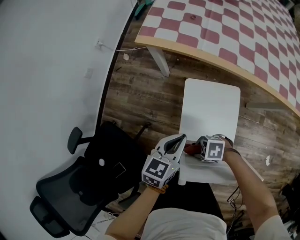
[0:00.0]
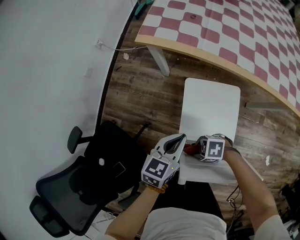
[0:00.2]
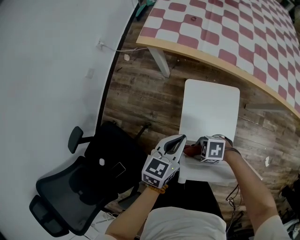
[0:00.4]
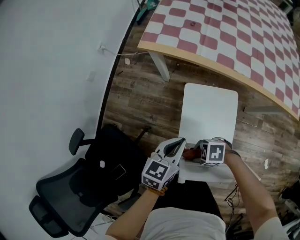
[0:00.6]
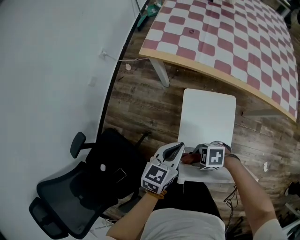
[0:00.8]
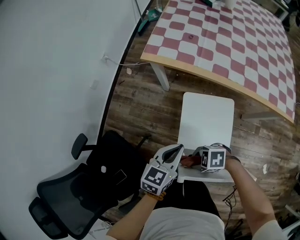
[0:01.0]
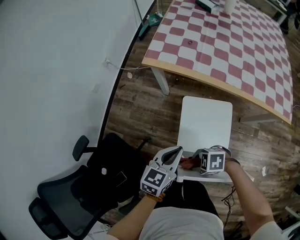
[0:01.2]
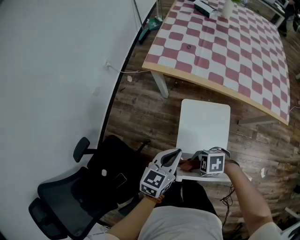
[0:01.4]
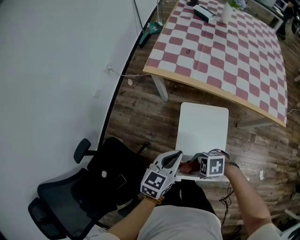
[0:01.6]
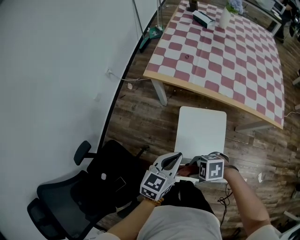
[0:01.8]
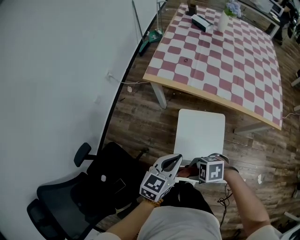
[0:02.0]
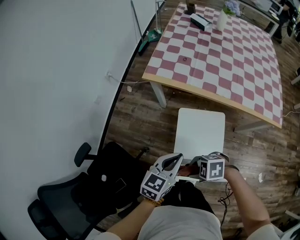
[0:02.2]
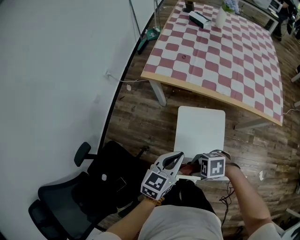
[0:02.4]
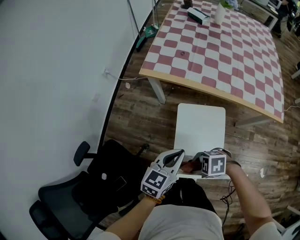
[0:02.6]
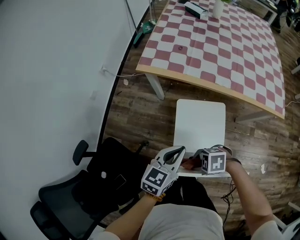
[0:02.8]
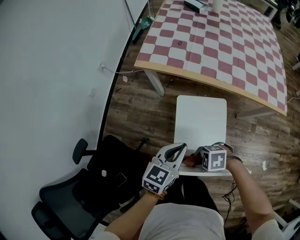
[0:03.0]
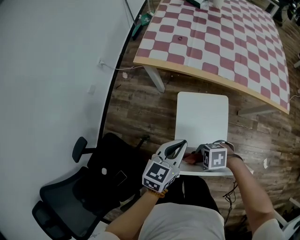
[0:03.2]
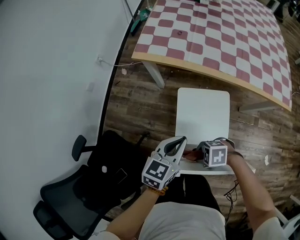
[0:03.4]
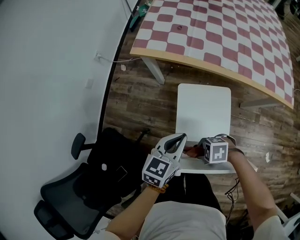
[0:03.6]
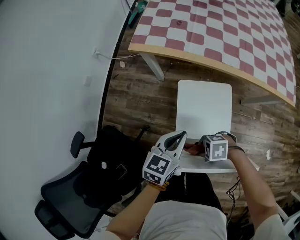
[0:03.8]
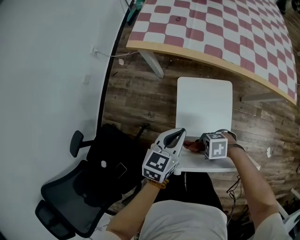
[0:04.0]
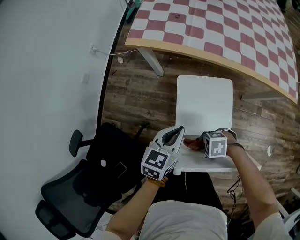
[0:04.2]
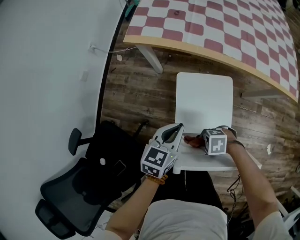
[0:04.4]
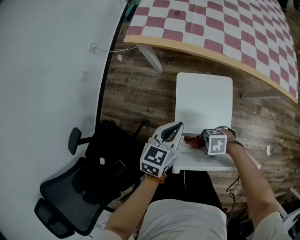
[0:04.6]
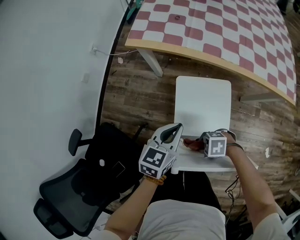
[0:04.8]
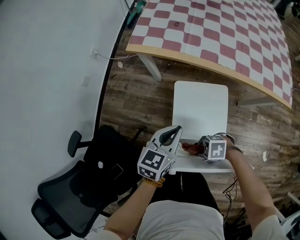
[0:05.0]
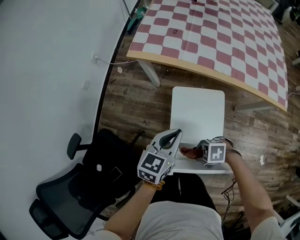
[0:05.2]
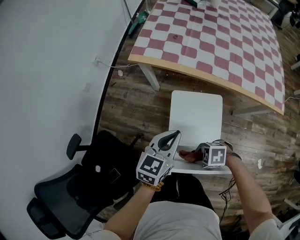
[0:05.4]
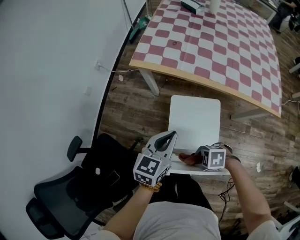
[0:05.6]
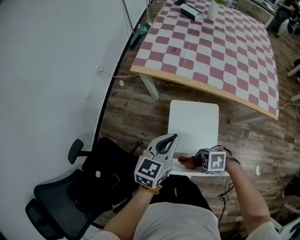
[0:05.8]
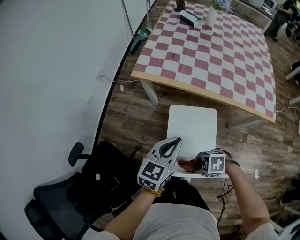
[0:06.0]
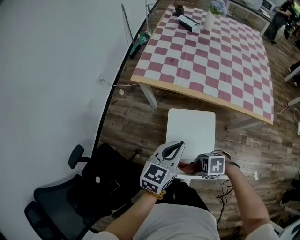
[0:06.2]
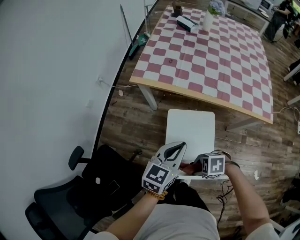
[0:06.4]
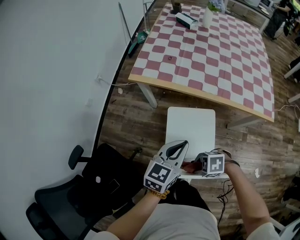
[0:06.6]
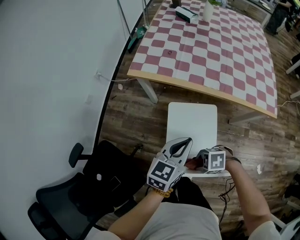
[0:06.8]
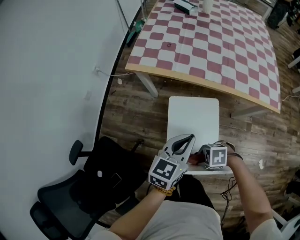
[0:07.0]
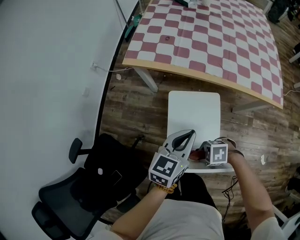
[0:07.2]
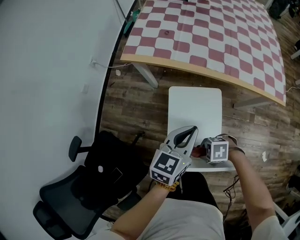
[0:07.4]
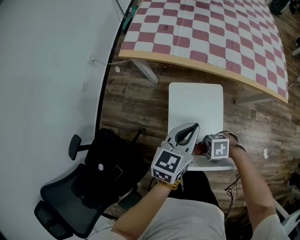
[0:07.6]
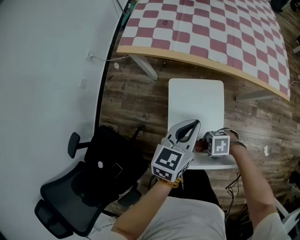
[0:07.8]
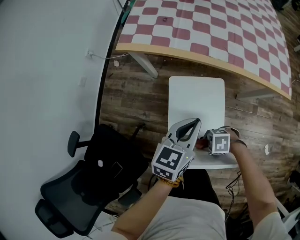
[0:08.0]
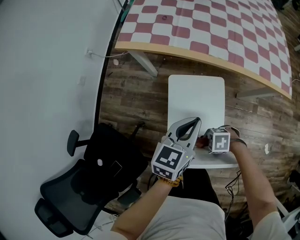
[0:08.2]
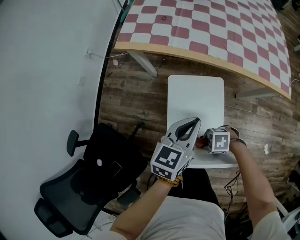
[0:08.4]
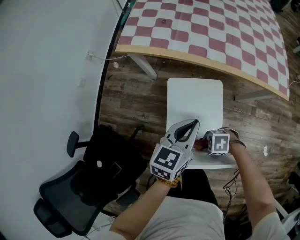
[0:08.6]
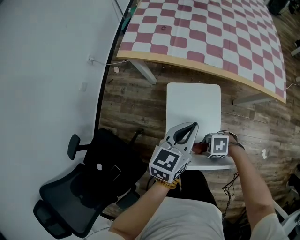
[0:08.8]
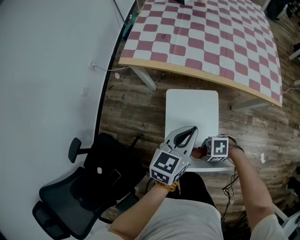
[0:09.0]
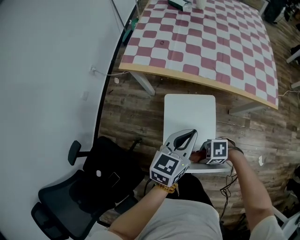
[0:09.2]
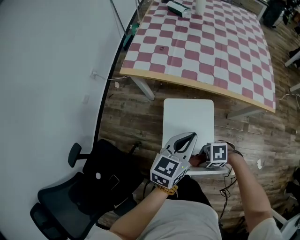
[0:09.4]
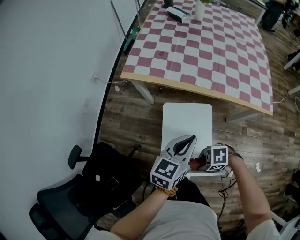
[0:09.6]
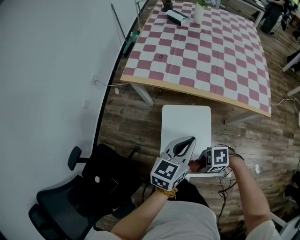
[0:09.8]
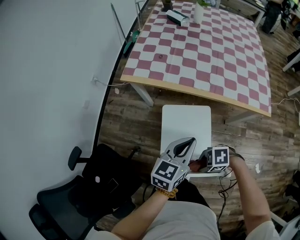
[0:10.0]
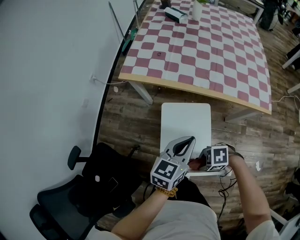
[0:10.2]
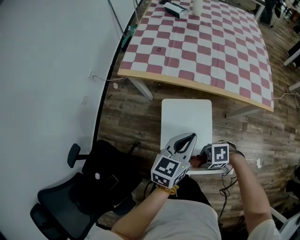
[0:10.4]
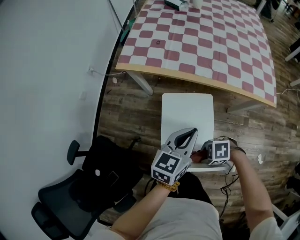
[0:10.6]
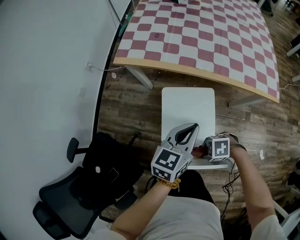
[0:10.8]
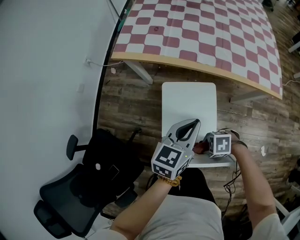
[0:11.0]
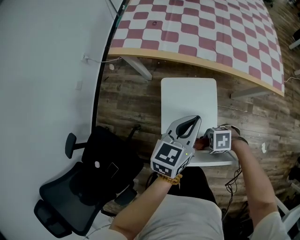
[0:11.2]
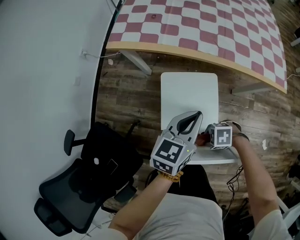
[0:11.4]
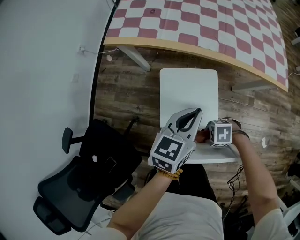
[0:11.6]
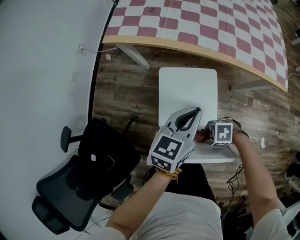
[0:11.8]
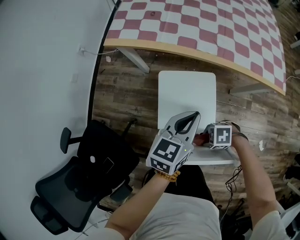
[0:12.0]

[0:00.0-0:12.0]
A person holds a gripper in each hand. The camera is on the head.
0.0 to 1.6 s: The left gripper goes some 10 cm upward; the right gripper travels upward by approximately 15 cm.
1.6 to 3.0 s: The grippers move only a little.
3.0 to 4.4 s: The two grippers go some 10 cm downward.
4.4 to 6.0 s: The grippers both shift upward by about 15 cm.
6.0 to 7.6 s: The right gripper shifts approximately 10 cm downward. Meanwhile the left gripper shifts by approximately 10 cm.
7.6 to 9.0 s: There are only small adjustments of the grippers.
9.0 to 10.4 s: The right gripper is displaced upward by some 5 cm.
10.4 to 12.0 s: The grippers both shift downward by approximately 10 cm.

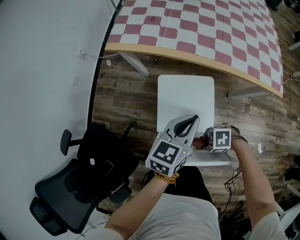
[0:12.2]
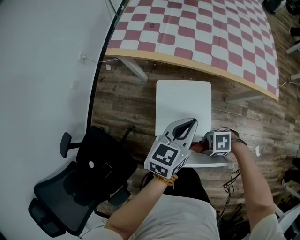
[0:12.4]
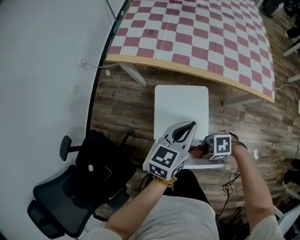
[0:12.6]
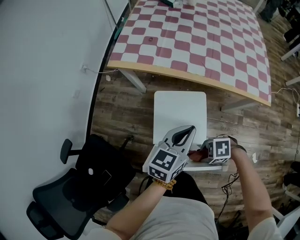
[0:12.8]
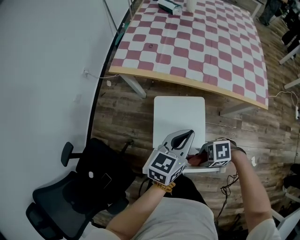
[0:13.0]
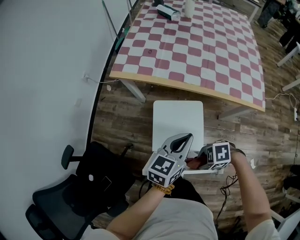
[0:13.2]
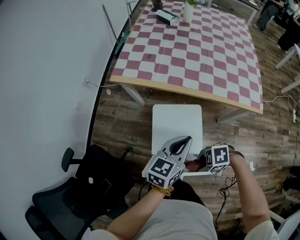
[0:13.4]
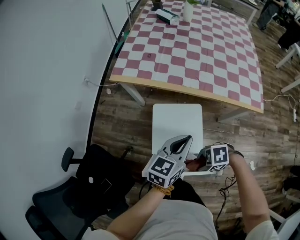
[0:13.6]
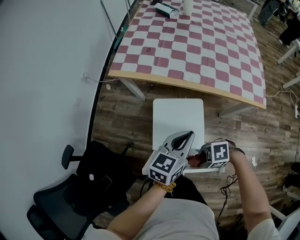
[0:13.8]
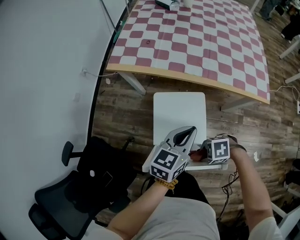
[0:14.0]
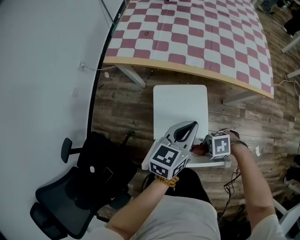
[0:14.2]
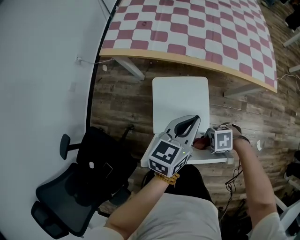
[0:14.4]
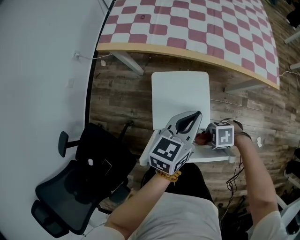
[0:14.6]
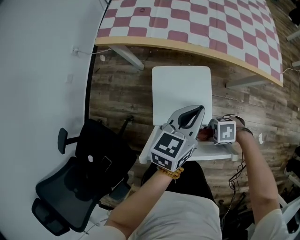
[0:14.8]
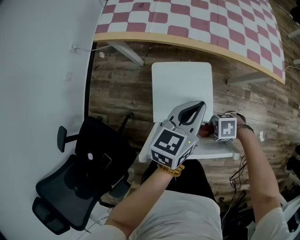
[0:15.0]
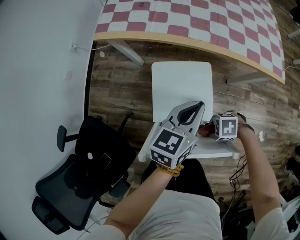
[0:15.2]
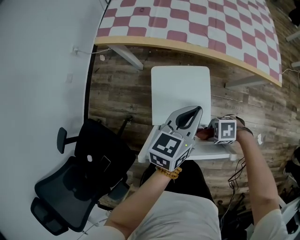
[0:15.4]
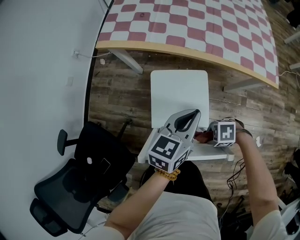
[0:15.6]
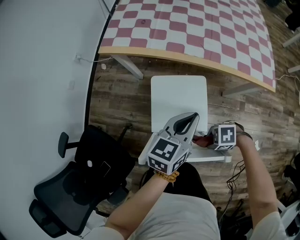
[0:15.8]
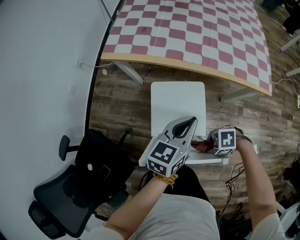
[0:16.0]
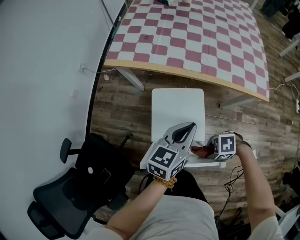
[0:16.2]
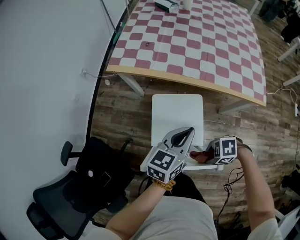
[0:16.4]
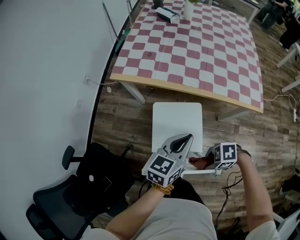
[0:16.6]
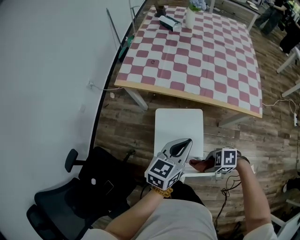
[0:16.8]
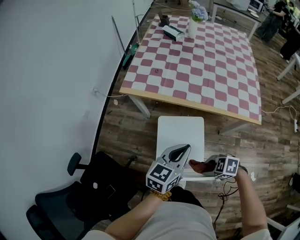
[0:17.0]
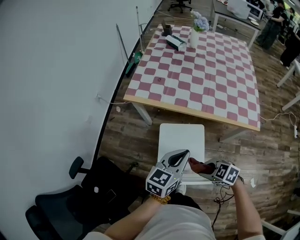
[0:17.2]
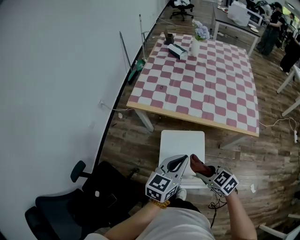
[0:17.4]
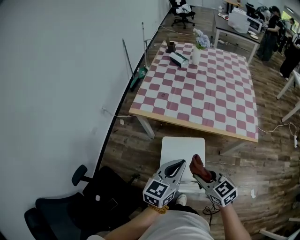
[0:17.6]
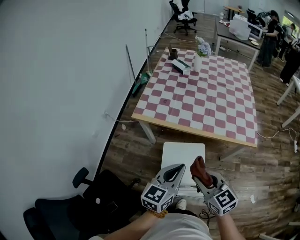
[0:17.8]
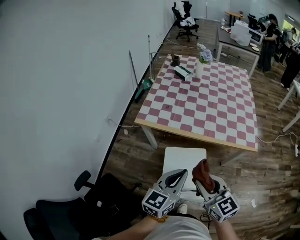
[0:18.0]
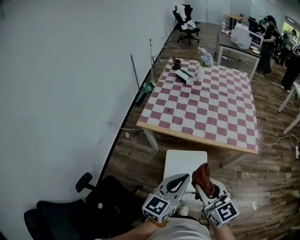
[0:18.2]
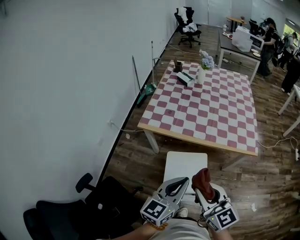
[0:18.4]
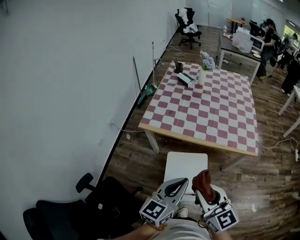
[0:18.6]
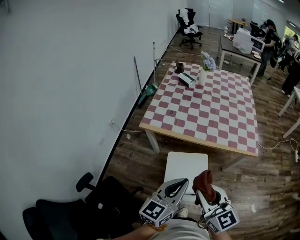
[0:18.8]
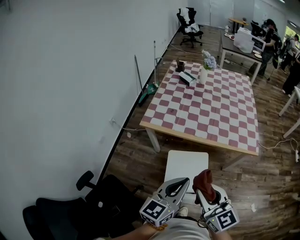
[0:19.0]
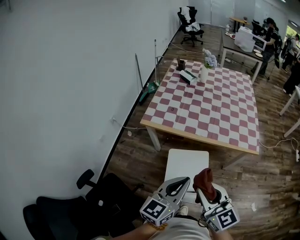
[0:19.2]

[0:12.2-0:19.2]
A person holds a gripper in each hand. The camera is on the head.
12.2 to 13.6 s: The right gripper is displaced upward by roughly 10 cm; the left gripper is displaced upward by roughly 5 cm.
13.6 to 15.0 s: The left gripper goes some 5 cm downward; the right gripper heads downward, covering approximately 15 cm.
15.0 to 16.4 s: The left gripper travels upward by approximately 5 cm; the right gripper moves upward, approximately 15 cm.
16.4 to 17.8 s: The right gripper heads upward, covering approximately 25 cm, and swivels roughly 80 degrees, while the left gripper goes some 15 cm upward.
17.8 to 19.2 s: The left gripper moves upward and backward, approximately 10 cm. Meanwhile the right gripper goes some 10 cm upward.

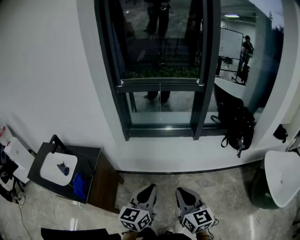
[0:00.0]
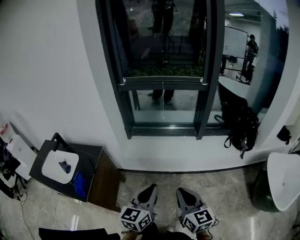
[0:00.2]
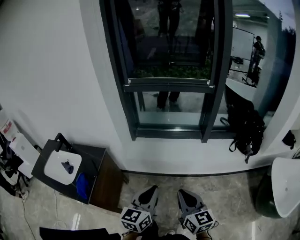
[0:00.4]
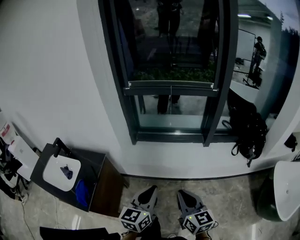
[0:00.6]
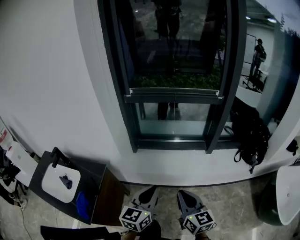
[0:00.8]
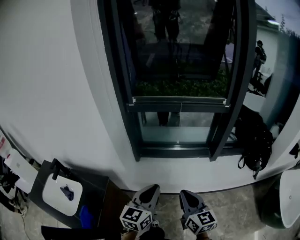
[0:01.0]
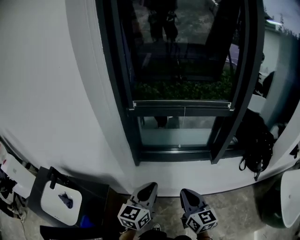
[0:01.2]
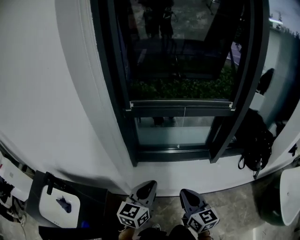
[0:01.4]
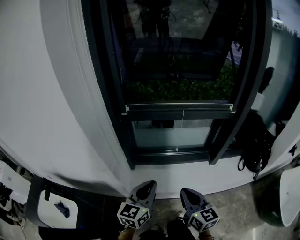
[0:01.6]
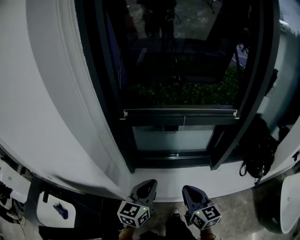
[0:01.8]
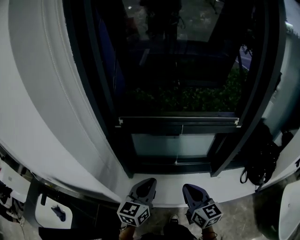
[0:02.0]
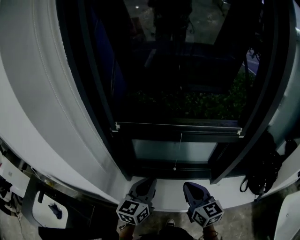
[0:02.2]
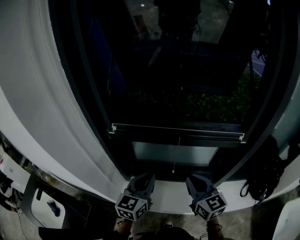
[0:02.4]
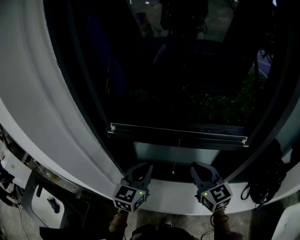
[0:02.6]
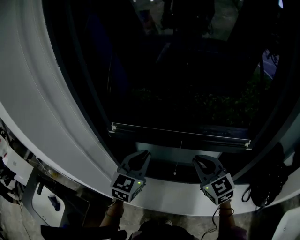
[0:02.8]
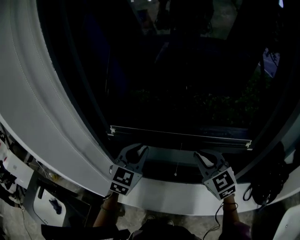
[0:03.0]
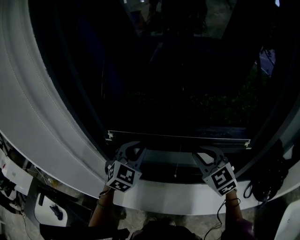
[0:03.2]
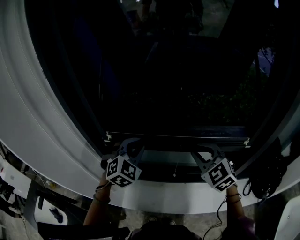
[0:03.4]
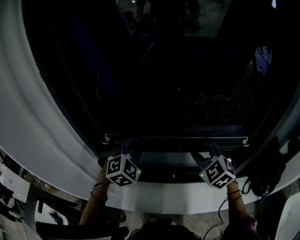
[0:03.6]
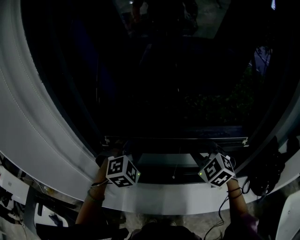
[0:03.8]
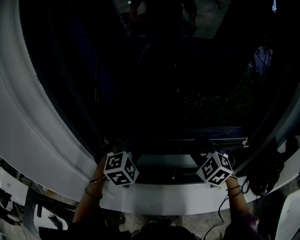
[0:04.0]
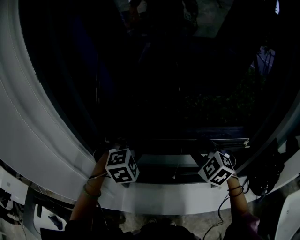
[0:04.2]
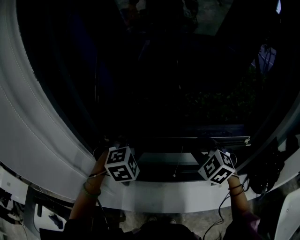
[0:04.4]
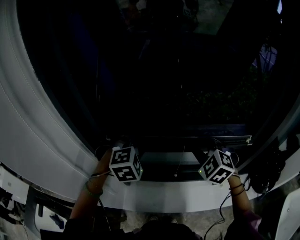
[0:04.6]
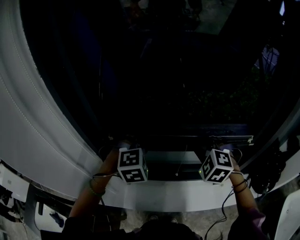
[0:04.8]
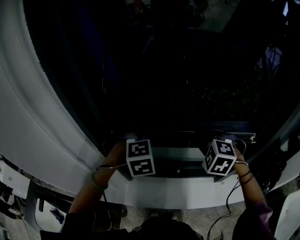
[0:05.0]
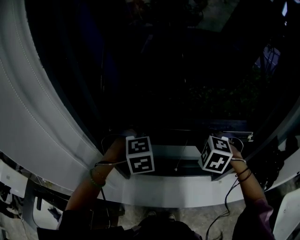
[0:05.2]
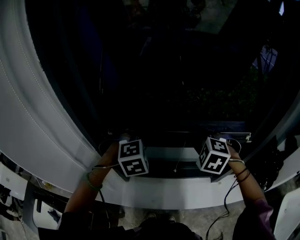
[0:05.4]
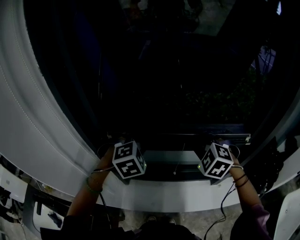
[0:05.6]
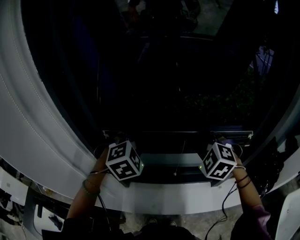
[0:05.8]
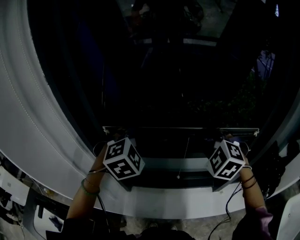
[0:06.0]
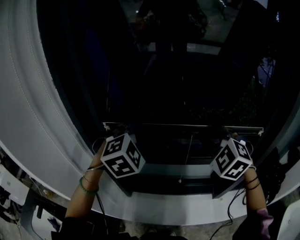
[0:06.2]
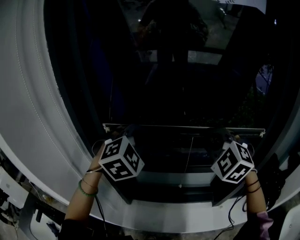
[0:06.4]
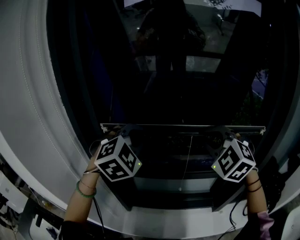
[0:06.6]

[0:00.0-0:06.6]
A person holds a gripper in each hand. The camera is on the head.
0.0 to 1.6 s: The pair of grippers is taken forward, roughly 40 cm.
1.6 to 3.2 s: The two grippers go approximately 35 cm forward. The right gripper rotates around the line of its fingers by some 40 degrees, counterclockwise from behind. The left gripper rolls clockwise, seen from behind, by approximately 50 degrees.
3.2 to 5.0 s: The right gripper ends up roughly 5 cm from where it was, and angles its fingers downward, by some 30 degrees. Meanwhile the left gripper tilts its fingers approximately 30 degrees downward.
5.0 to 6.6 s: The two grippers go some 20 cm upward. The left gripper turns by roughly 30 degrees, while the right gripper rotates approximately 30 degrees.
